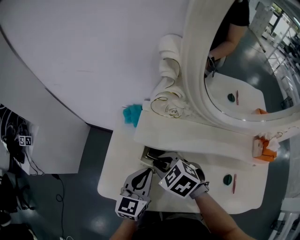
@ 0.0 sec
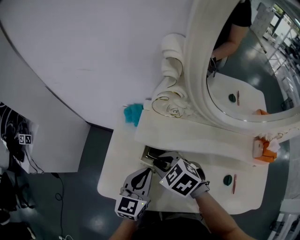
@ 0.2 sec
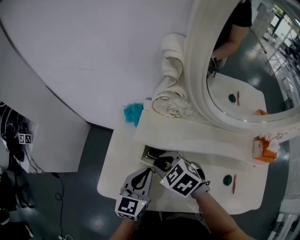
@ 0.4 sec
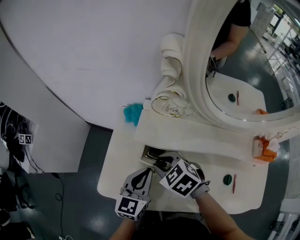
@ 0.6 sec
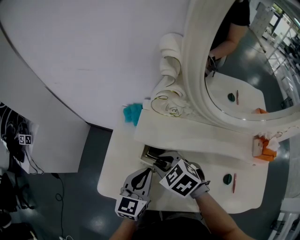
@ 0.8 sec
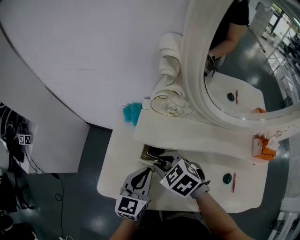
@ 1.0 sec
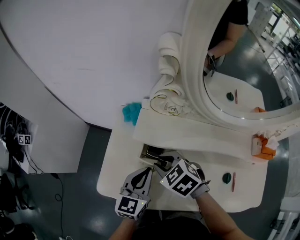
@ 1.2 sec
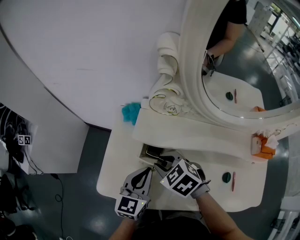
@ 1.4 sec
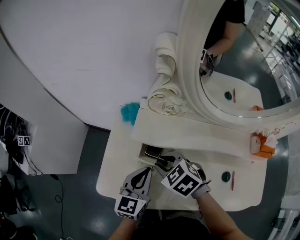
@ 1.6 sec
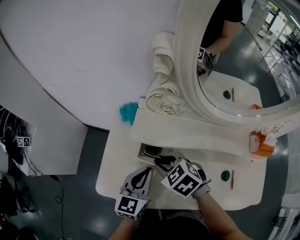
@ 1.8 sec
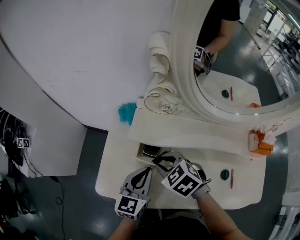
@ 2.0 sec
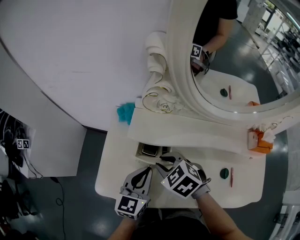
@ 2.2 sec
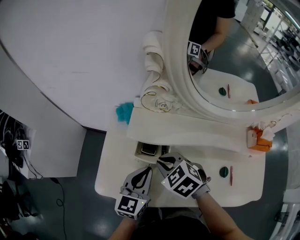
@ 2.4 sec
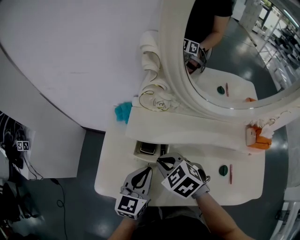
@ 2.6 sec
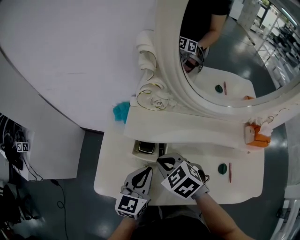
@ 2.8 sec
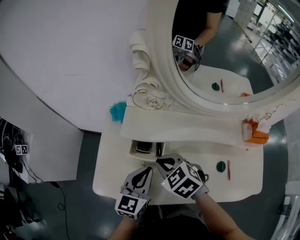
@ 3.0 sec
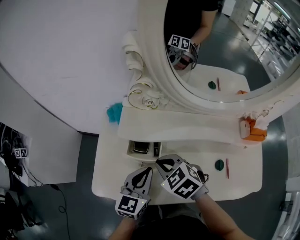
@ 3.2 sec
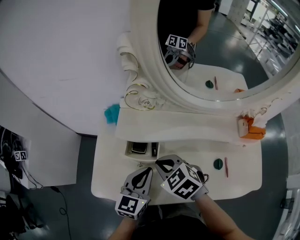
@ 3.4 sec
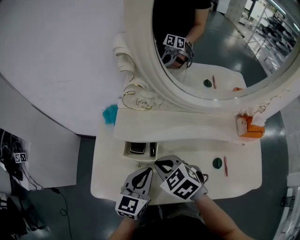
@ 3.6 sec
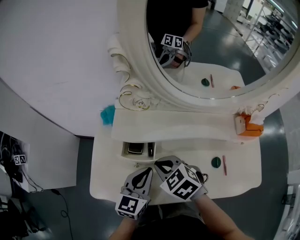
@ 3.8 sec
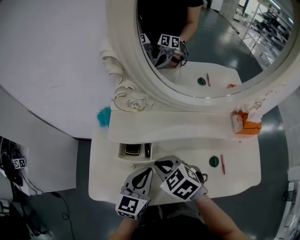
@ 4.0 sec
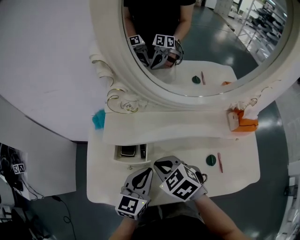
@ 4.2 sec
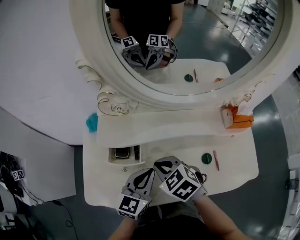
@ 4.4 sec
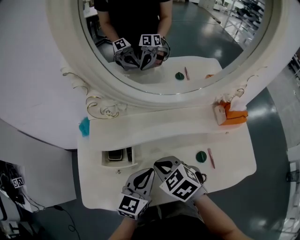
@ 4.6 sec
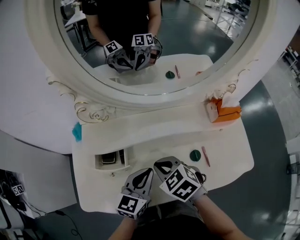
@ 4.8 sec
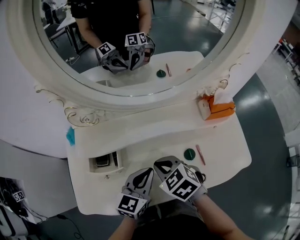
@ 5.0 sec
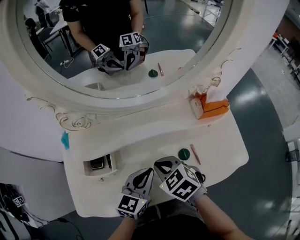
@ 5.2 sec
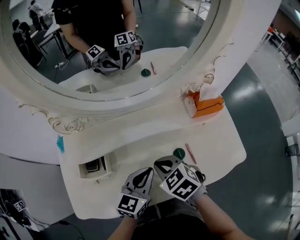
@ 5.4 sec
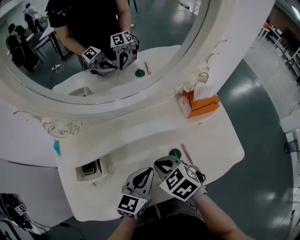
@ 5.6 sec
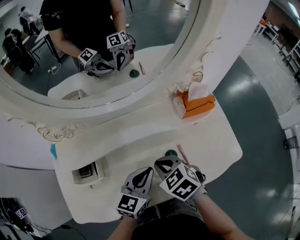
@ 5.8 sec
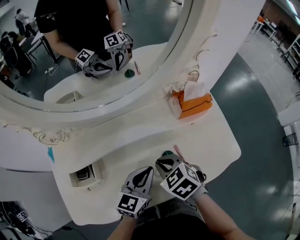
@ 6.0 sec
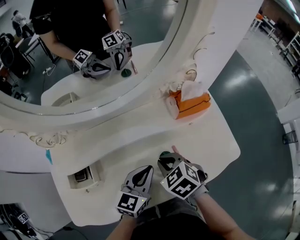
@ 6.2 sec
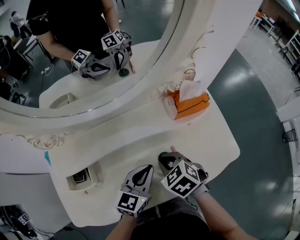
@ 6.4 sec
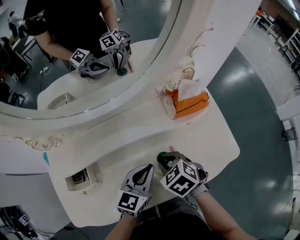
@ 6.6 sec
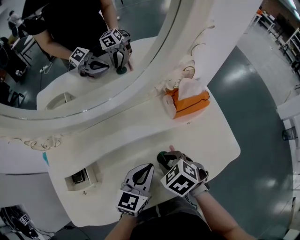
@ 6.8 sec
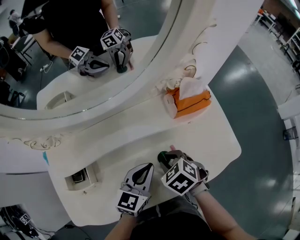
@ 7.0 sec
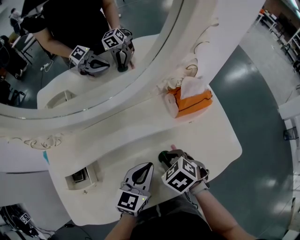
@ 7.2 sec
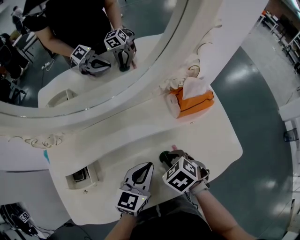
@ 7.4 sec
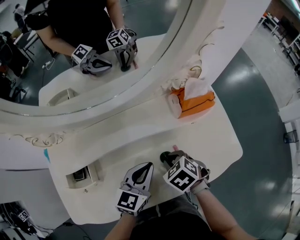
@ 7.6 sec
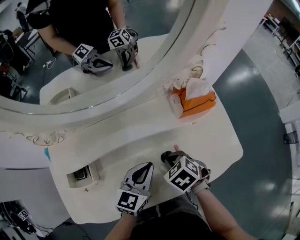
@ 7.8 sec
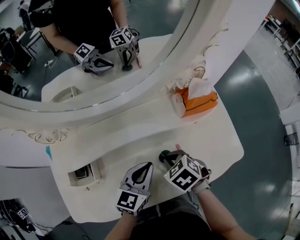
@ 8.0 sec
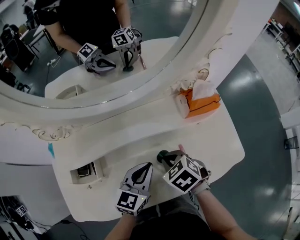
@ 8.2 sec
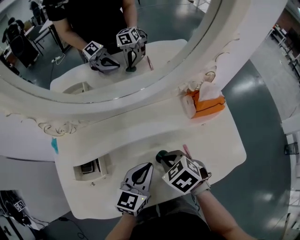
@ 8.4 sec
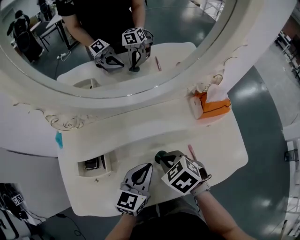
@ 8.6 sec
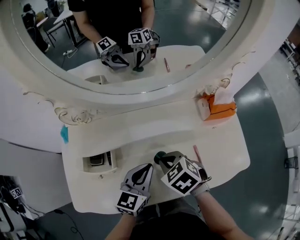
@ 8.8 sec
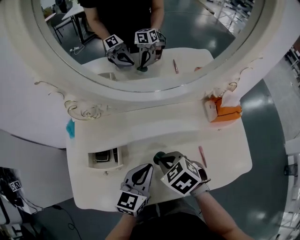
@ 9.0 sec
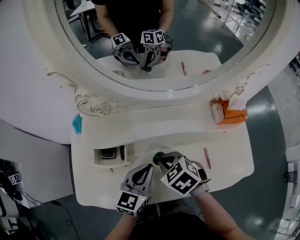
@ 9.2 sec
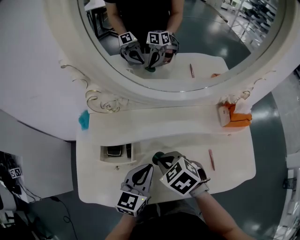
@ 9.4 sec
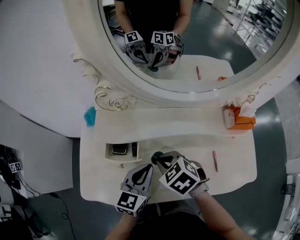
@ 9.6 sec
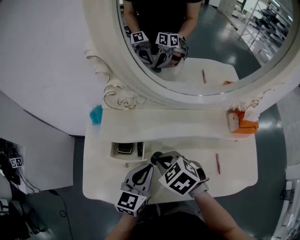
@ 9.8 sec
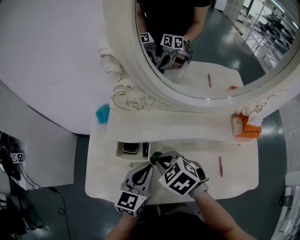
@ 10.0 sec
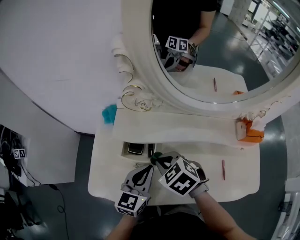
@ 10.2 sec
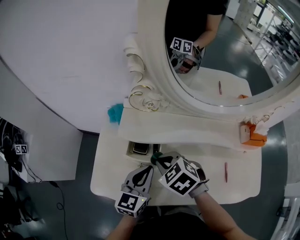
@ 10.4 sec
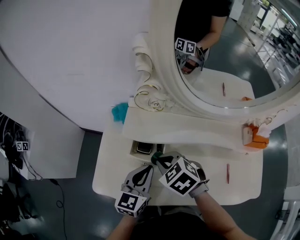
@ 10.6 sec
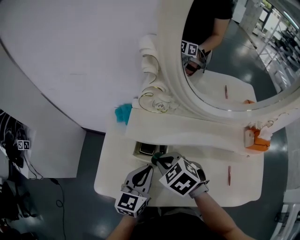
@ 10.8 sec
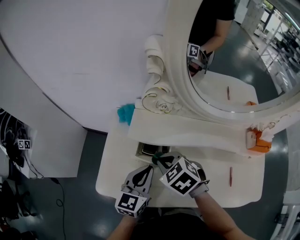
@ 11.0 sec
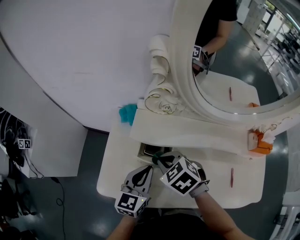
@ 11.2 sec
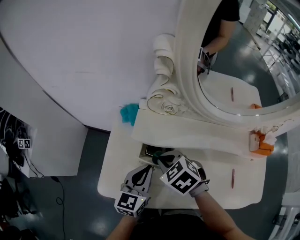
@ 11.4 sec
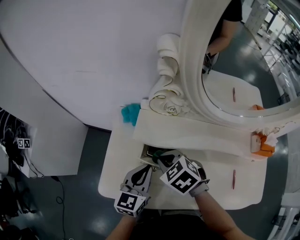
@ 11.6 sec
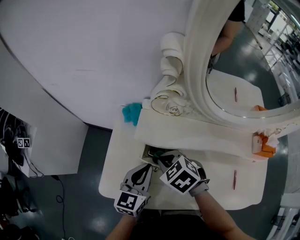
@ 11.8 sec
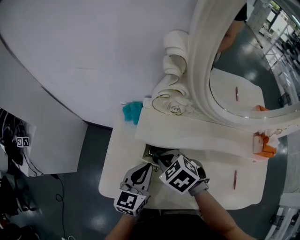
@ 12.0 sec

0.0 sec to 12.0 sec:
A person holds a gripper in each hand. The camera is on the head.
0.0 sec to 3.0 sec: The grippers move only a little.
3.0 sec to 4.4 sec: The two grippers go some 10 cm to the right.
4.4 sec to 6.0 sec: The two grippers go approximately 20 cm to the right. The right gripper turns by some 20 degrees.
6.0 sec to 7.6 sec: The right gripper is displaced downward and to the right by about 10 cm.
7.6 sec to 9.0 sec: The right gripper moves to the left and upward, some 15 cm; the left gripper shifts roughly 10 cm to the left.
9.0 sec to 10.4 sec: Both grippers move to the left, about 15 cm.
10.4 sec to 12.0 sec: Both grippers move to the left, some 5 cm.

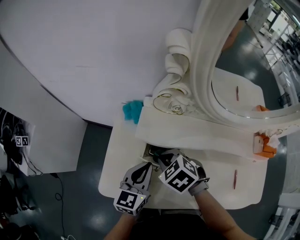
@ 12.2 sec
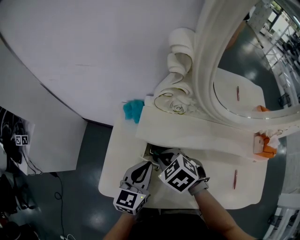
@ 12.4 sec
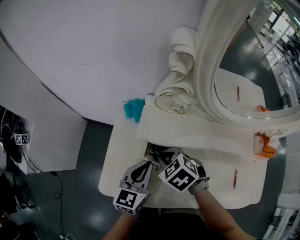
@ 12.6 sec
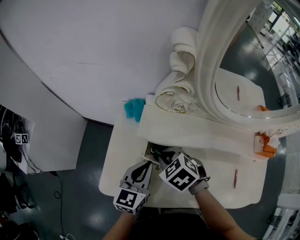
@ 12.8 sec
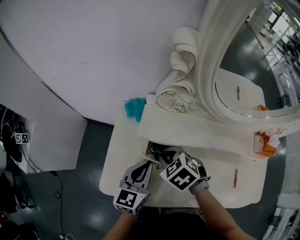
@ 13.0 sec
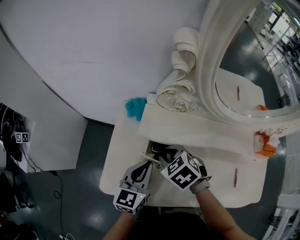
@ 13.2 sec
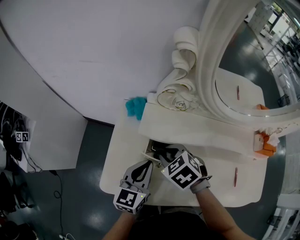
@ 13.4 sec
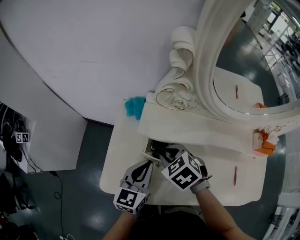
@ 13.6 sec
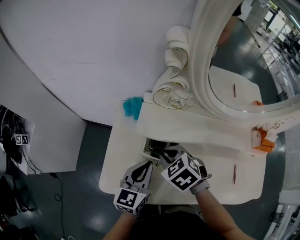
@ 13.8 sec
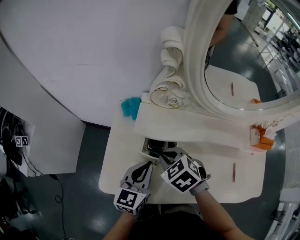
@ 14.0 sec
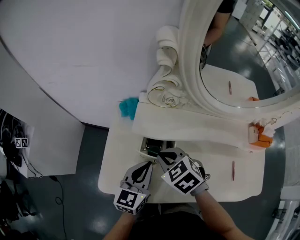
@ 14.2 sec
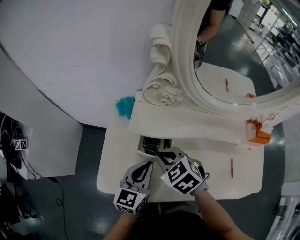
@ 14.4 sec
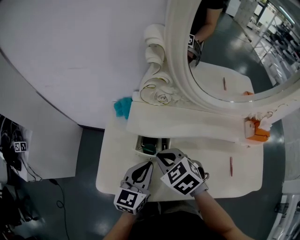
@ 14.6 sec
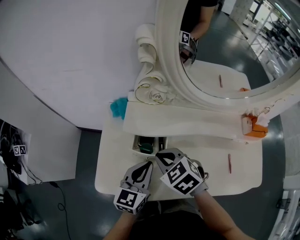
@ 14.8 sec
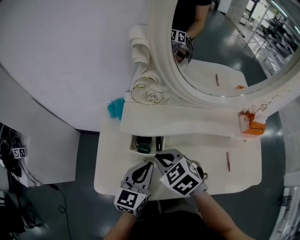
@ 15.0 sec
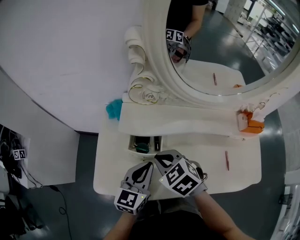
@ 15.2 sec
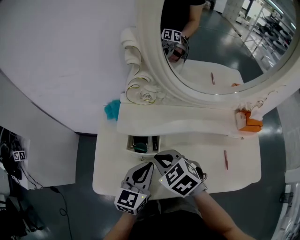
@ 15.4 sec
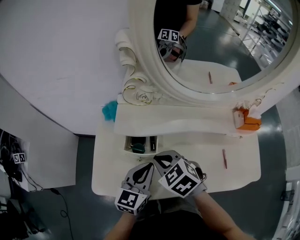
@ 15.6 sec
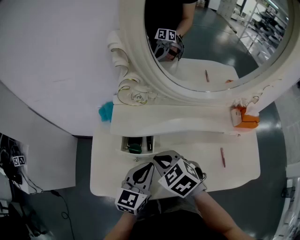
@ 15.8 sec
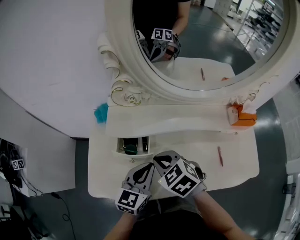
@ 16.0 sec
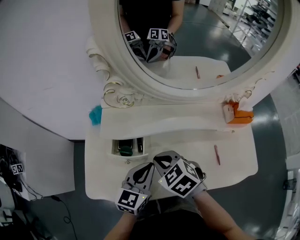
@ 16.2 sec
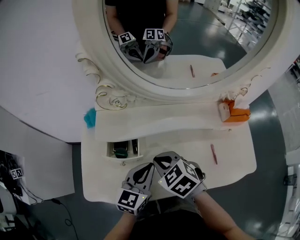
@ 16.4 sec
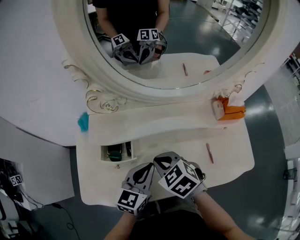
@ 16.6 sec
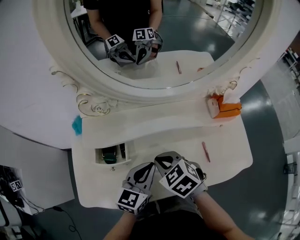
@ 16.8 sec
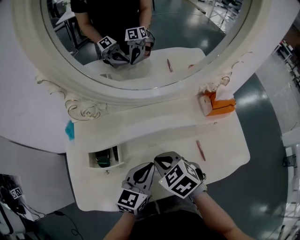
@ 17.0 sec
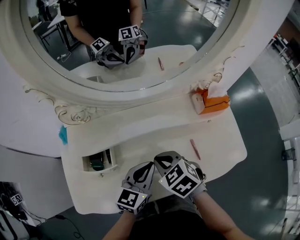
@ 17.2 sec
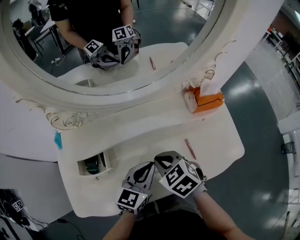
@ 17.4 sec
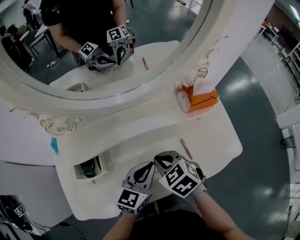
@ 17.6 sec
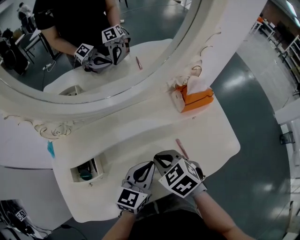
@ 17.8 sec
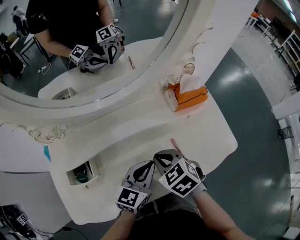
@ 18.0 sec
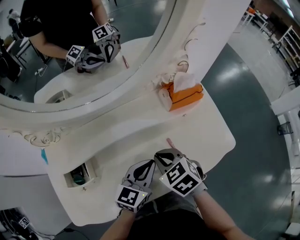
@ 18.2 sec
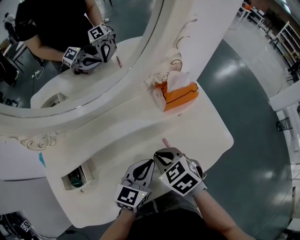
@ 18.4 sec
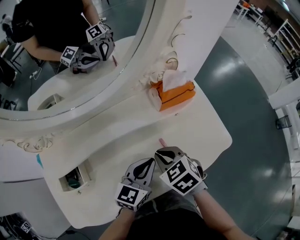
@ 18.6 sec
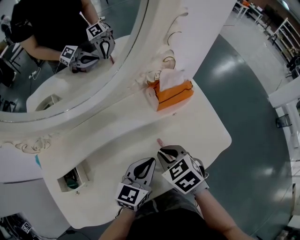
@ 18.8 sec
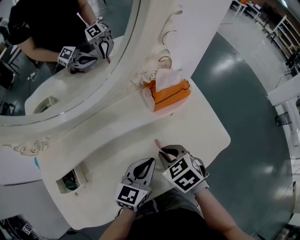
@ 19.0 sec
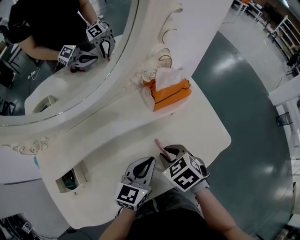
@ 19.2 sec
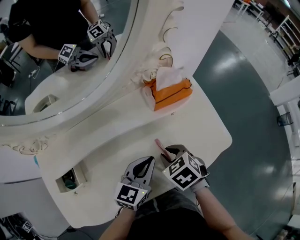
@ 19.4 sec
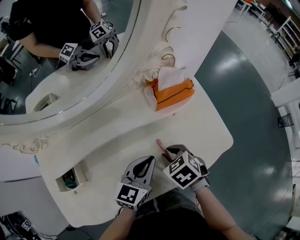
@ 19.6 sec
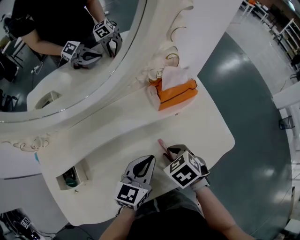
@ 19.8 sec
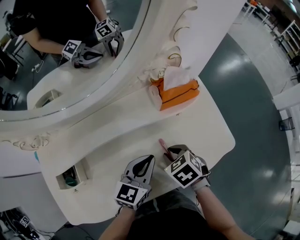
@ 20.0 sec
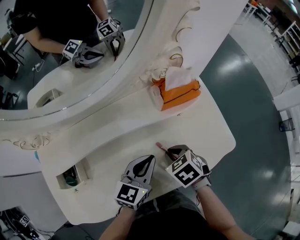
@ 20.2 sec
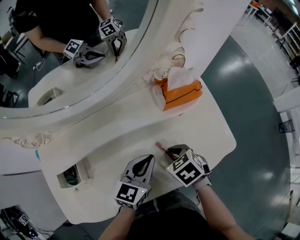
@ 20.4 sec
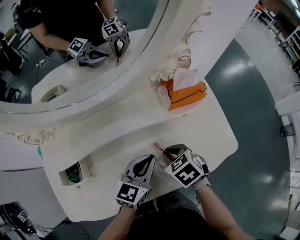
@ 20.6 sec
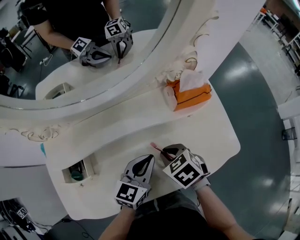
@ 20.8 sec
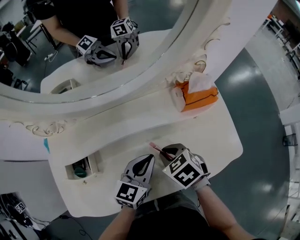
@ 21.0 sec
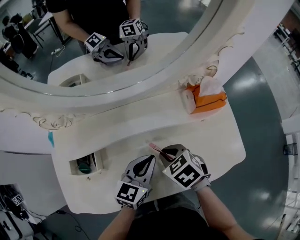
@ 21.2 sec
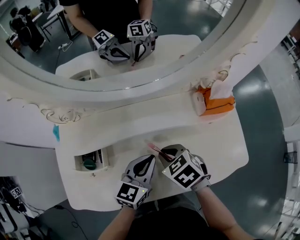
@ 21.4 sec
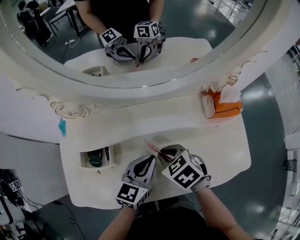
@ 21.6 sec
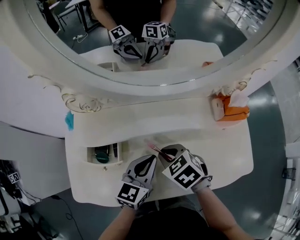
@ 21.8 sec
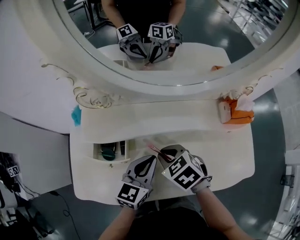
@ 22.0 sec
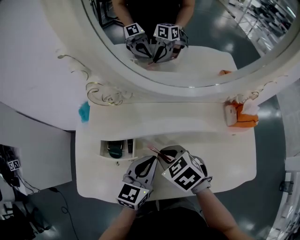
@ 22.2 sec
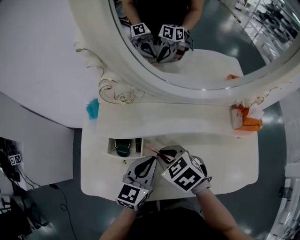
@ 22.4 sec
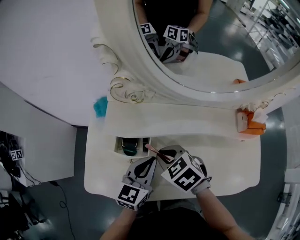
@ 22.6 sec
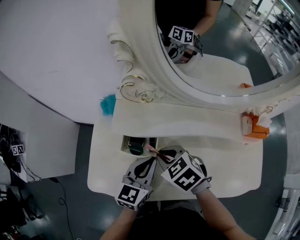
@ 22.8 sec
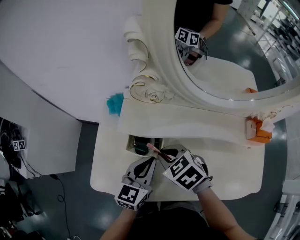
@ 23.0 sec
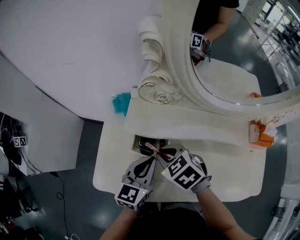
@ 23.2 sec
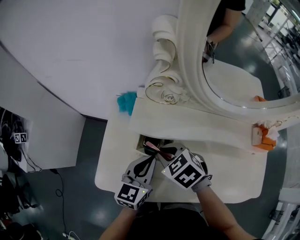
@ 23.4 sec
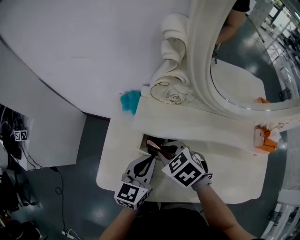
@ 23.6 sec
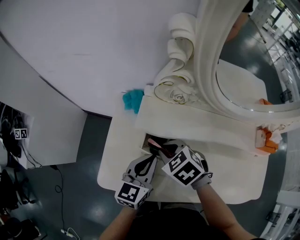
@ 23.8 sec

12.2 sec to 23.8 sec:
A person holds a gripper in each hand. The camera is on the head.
12.2 sec to 13.6 sec: There are only small adjustments of the grippers.
13.6 sec to 15.0 sec: The left gripper travels to the right by some 5 cm; the right gripper ends up some 5 cm from where it was.
15.0 sec to 16.6 sec: The grippers both shift to the right by approximately 10 cm.
16.6 sec to 18.0 sec: The two grippers go some 15 cm to the right. The right gripper swivels about 20 degrees.
18.0 sec to 19.4 sec: The right gripper heads to the right and downward, covering approximately 10 cm. The left gripper travels to the right by some 5 cm.
19.4 sec to 21.0 sec: Both grippers travel together to the left, roughly 10 cm.
21.0 sec to 22.4 sec: The grippers both shift to the left by roughly 20 cm. The left gripper swivels some 20 degrees; the right gripper turns by roughly 20 degrees.
22.4 sec to 23.8 sec: The left gripper travels to the left by roughly 15 cm. Meanwhile the right gripper travels to the left and forward by approximately 15 cm.
